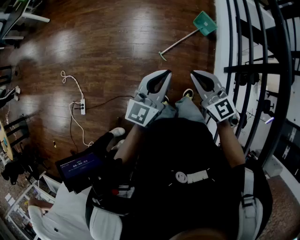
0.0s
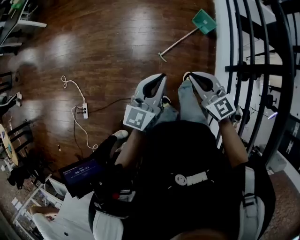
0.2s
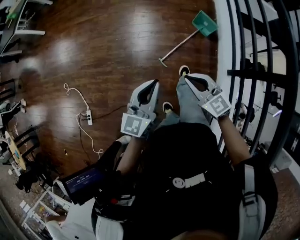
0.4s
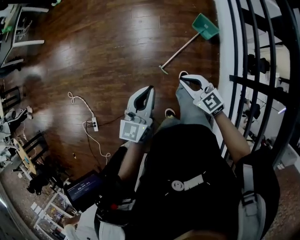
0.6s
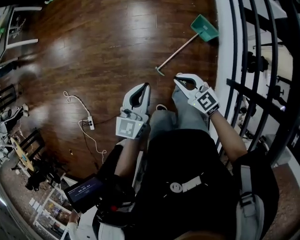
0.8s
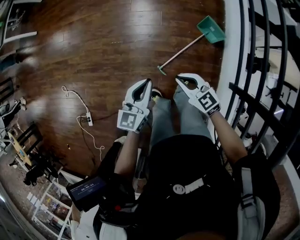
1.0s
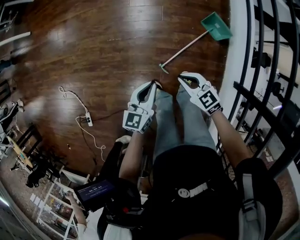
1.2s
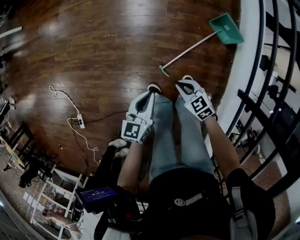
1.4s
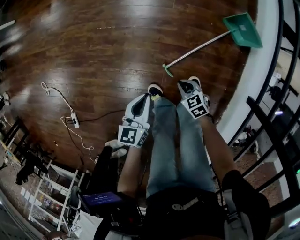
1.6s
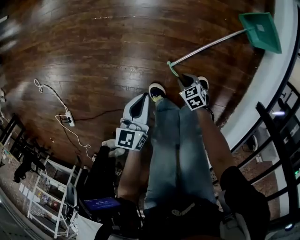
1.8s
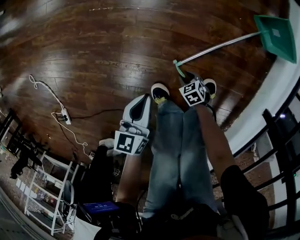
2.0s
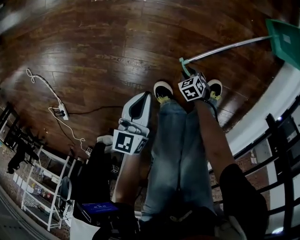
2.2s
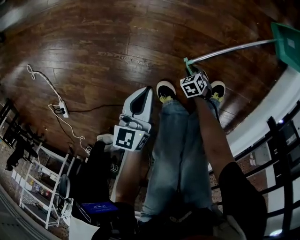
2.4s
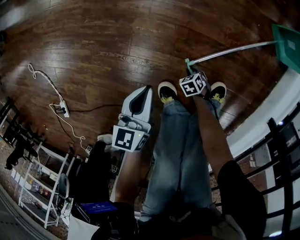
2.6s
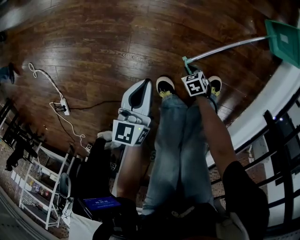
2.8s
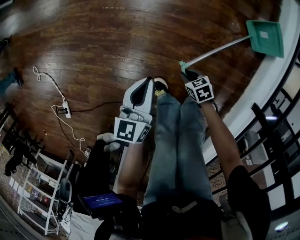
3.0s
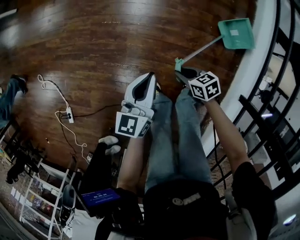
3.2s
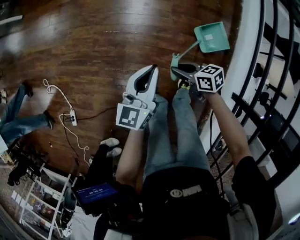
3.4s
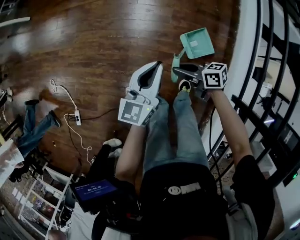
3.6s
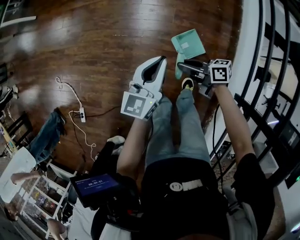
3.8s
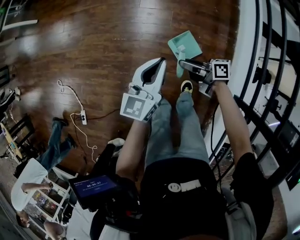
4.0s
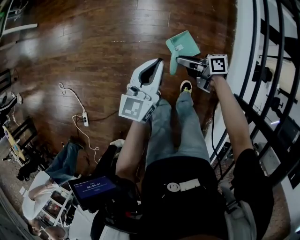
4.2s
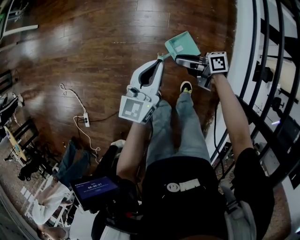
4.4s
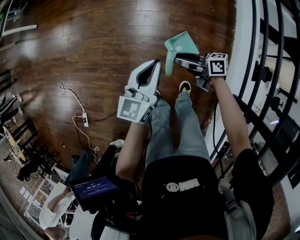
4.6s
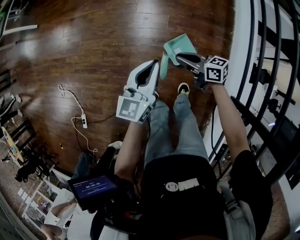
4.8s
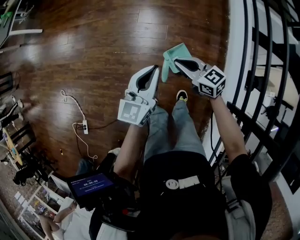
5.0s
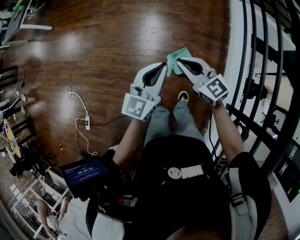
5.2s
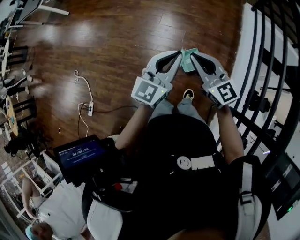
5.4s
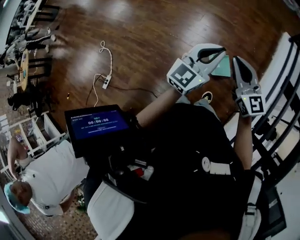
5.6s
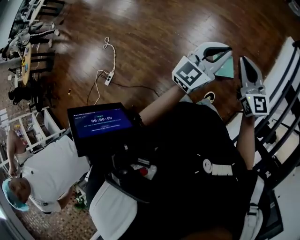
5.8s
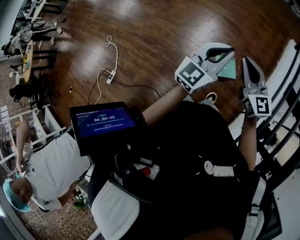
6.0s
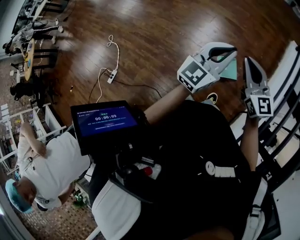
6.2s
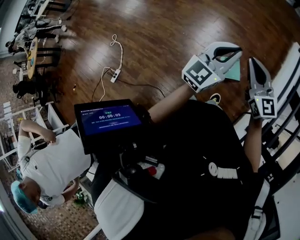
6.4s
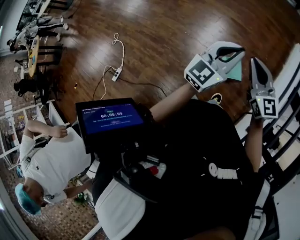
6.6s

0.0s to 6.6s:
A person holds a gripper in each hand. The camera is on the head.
0.0s to 1.6s: The two grippers go some 60 cm downward and forward. The right gripper points its fingers roughly 40 degrees further downward; the left gripper angles its fingers downward, by roughly 30 degrees.
1.6s to 3.2s: The right gripper reaches some 30 cm downward, then returns, and turns by roughly 20 degrees, while the left gripper shifts some 10 cm upward.
3.2s to 5.0s: The left gripper shifts roughly 25 cm upward and to the right, while the right gripper is displaced upward by some 35 cm, rotates some 40 degrees, and opens, then closes once more.
5.0s to 6.6s: Both grippers move upward, some 20 cm. The right gripper changes its angle by about 30 degrees.

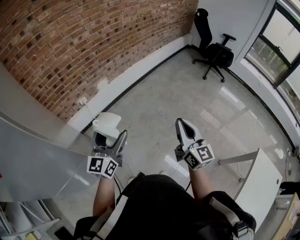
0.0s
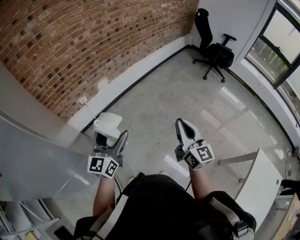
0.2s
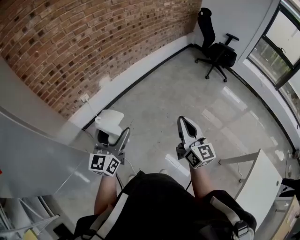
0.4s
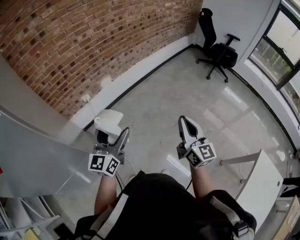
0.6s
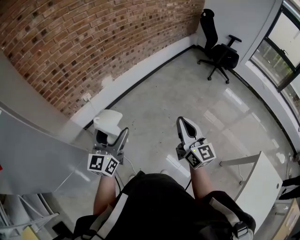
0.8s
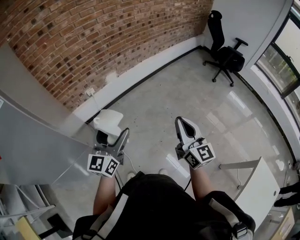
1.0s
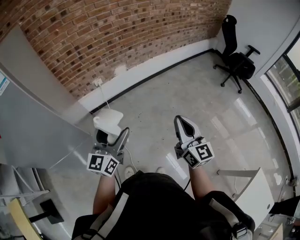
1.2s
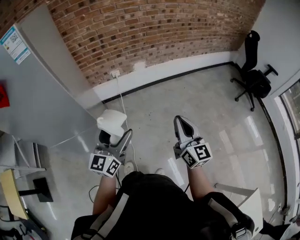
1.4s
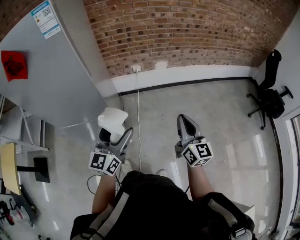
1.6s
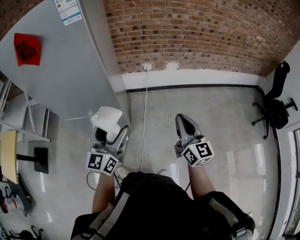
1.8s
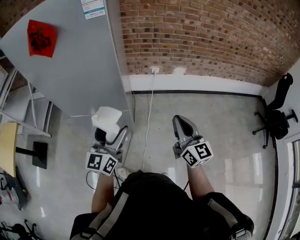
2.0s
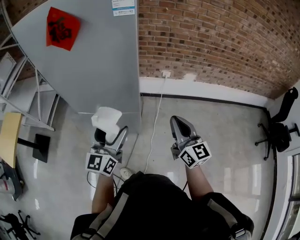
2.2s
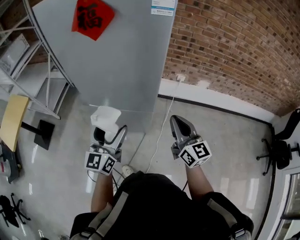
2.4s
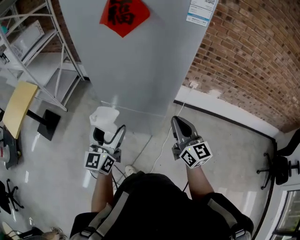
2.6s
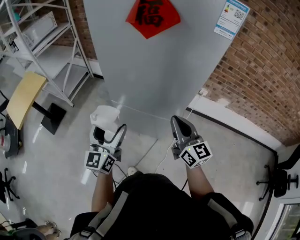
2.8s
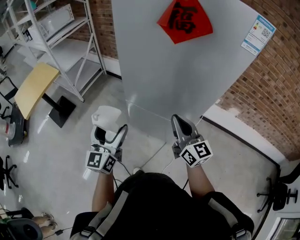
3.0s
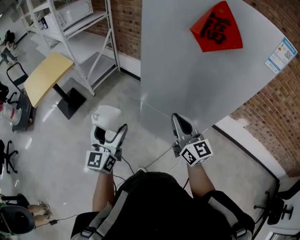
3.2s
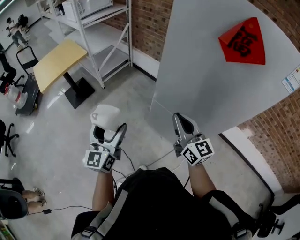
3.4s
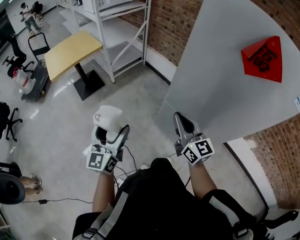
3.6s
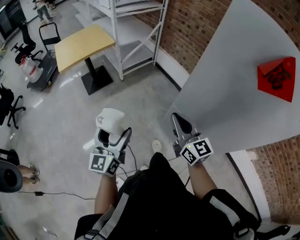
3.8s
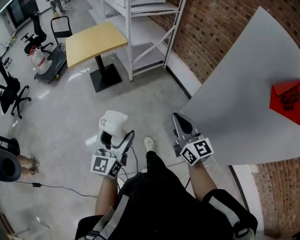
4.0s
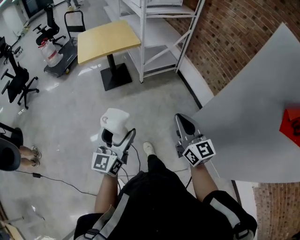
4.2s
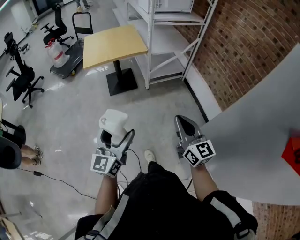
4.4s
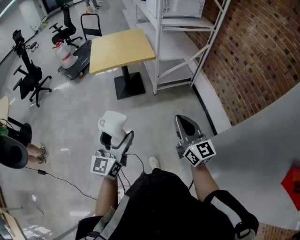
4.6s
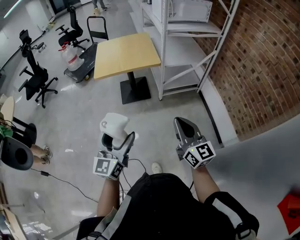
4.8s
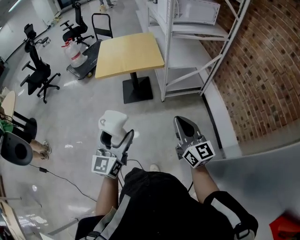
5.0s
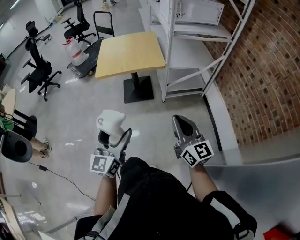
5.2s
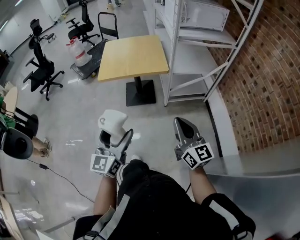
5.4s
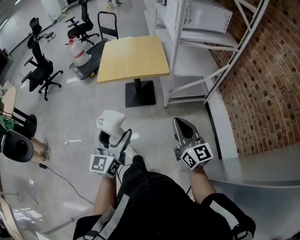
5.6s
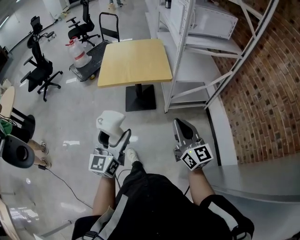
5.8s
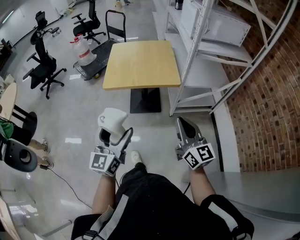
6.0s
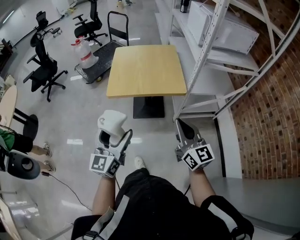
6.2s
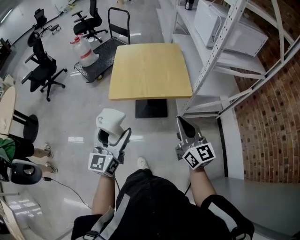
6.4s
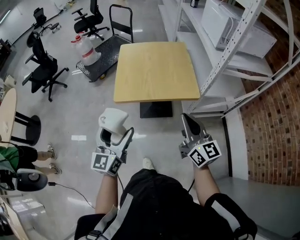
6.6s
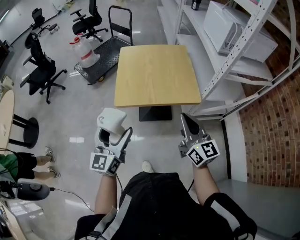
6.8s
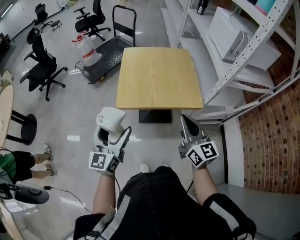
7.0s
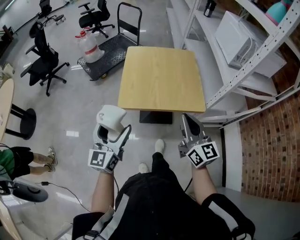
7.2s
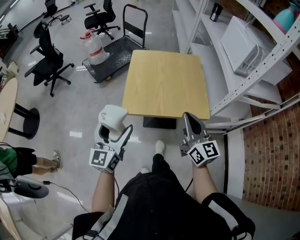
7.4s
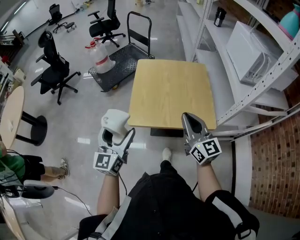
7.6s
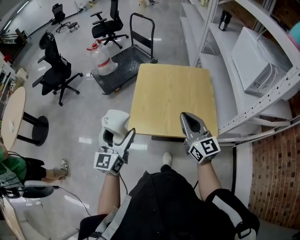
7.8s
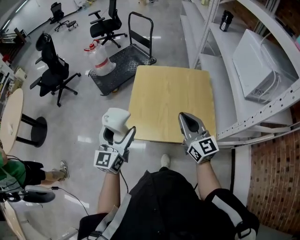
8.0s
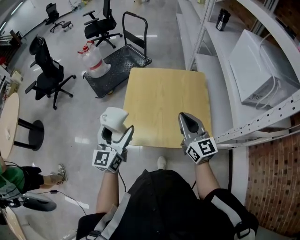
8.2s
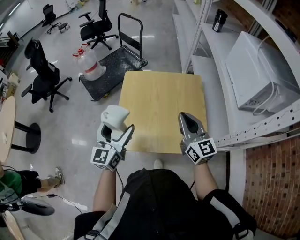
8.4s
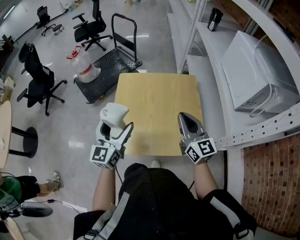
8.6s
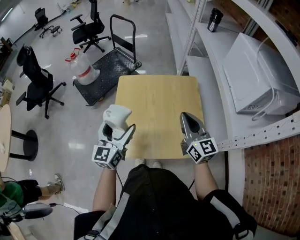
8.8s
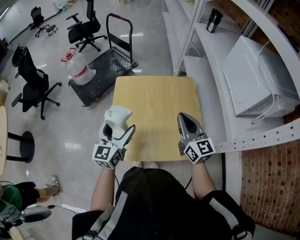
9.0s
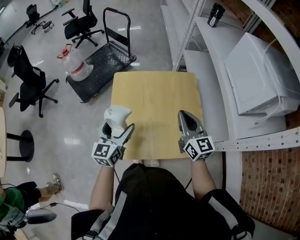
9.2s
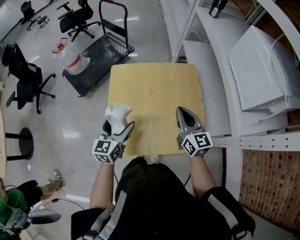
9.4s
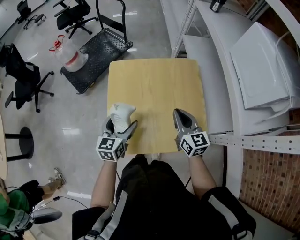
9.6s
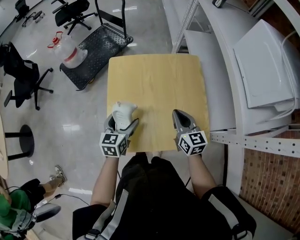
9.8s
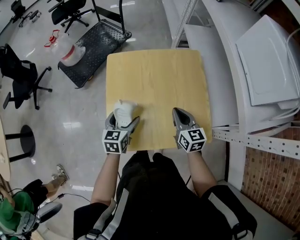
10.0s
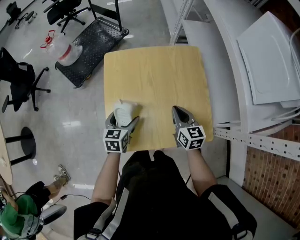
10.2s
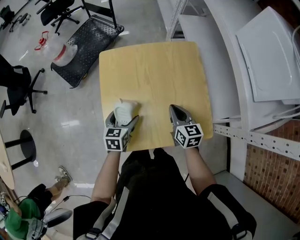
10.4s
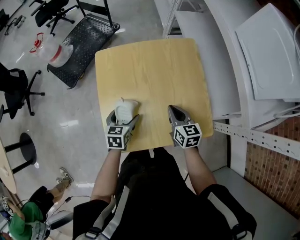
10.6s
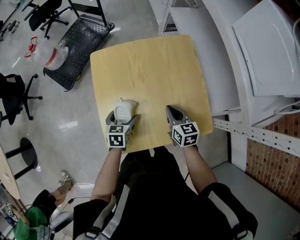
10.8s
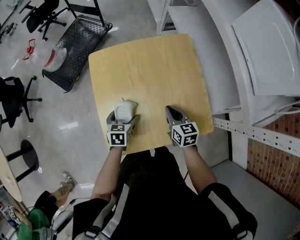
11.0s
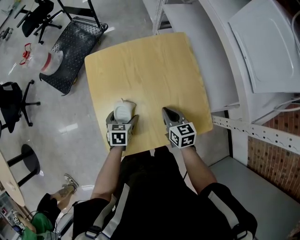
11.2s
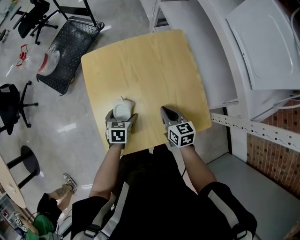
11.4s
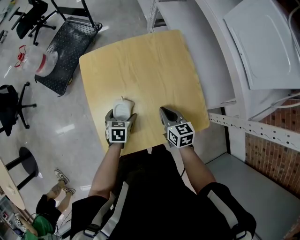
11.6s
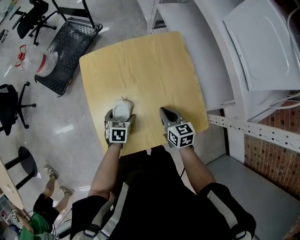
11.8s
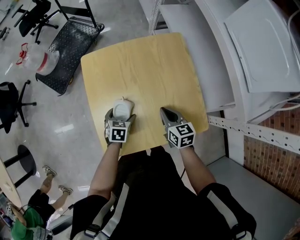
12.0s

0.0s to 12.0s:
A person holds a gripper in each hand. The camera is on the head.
0.0s to 1.6s: The left gripper shifts by roughly 15 cm, and changes its angle by some 30 degrees. Meanwhile the right gripper moves some 15 cm, and rotates about 30 degrees.
1.6s to 3.0s: The two grippers travel together, some 50 cm. The left gripper swivels some 40 degrees. Meanwhile the right gripper turns by approximately 50 degrees.
3.0s to 4.4s: The left gripper ends up approximately 30 cm from where it was, and rotates roughly 40 degrees, while the right gripper moves approximately 40 cm, and swivels roughly 40 degrees.
4.4s to 6.0s: The grippers both shift forward by some 30 cm.
6.0s to 7.6s: The left gripper travels forward and to the left by some 30 cm; the right gripper goes some 35 cm forward.
7.6s to 9.0s: The two grippers go about 25 cm forward and to the right.
9.0s to 10.4s: The two grippers go approximately 20 cm downward. The left gripper tilts its fingers roughly 40 degrees downward. The right gripper rotates about 30 degrees.
10.4s to 12.0s: The left gripper travels downward by approximately 10 cm, and changes its angle by about 20 degrees.

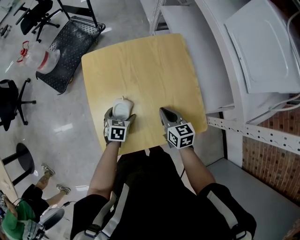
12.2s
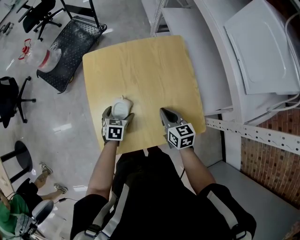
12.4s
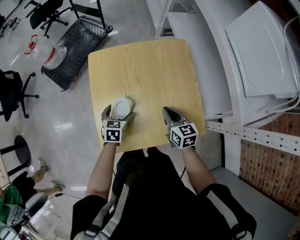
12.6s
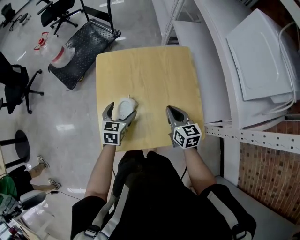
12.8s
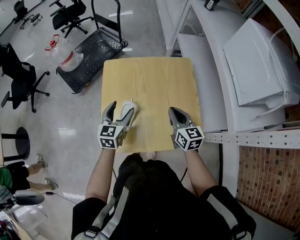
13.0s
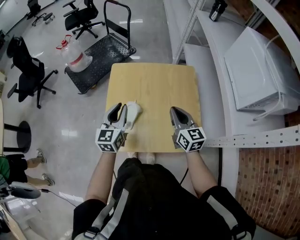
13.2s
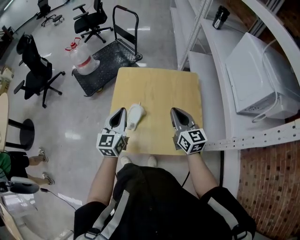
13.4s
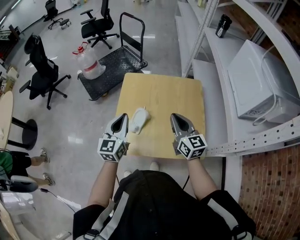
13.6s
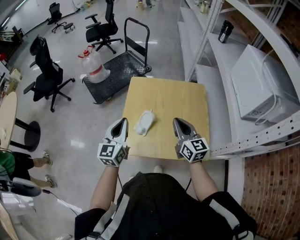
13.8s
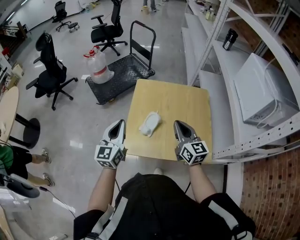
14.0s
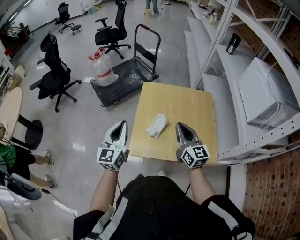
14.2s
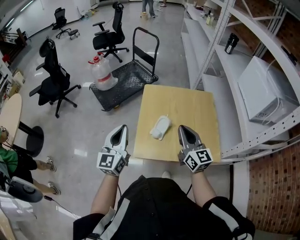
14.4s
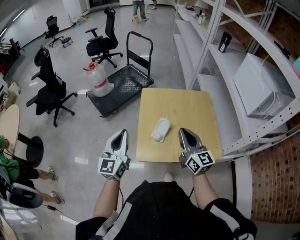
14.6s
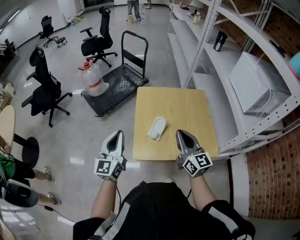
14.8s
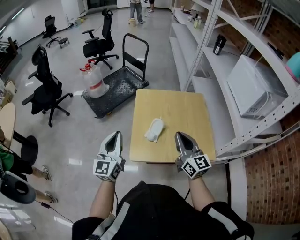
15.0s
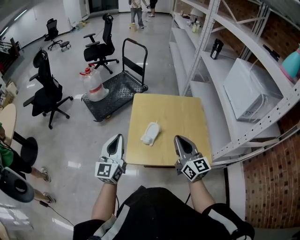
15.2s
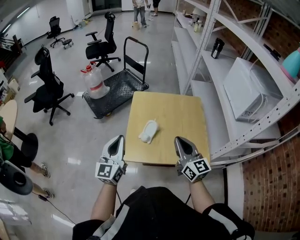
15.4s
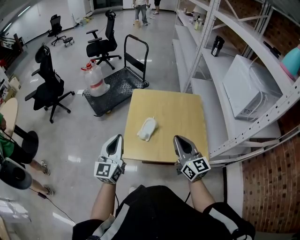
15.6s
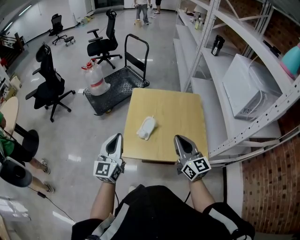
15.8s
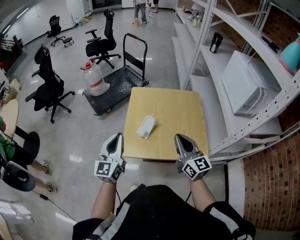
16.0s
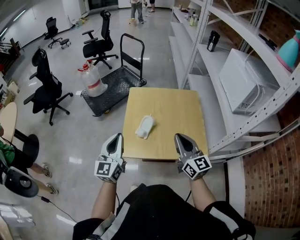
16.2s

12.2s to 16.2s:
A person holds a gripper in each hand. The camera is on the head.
12.2s to 13.6s: The left gripper travels upward by approximately 30 cm, points its fingers some 50 degrees further upward, and closes its fingers; the right gripper goes roughly 20 cm upward, and swivels some 30 degrees.
13.6s to 14.8s: The right gripper heads to the left, backward and upward, covering about 15 cm; the left gripper shifts some 15 cm to the left.
14.8s to 16.2s: Both grippers move to the right, roughly 10 cm.

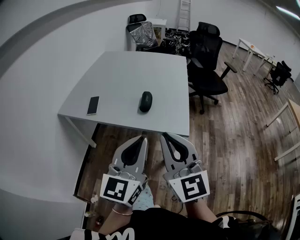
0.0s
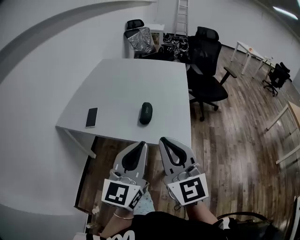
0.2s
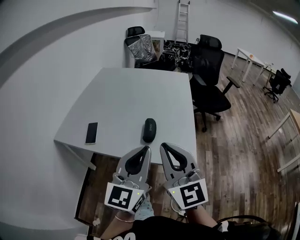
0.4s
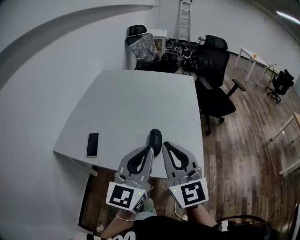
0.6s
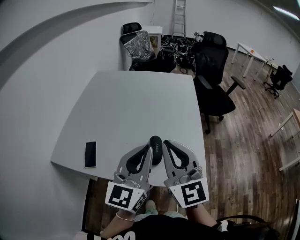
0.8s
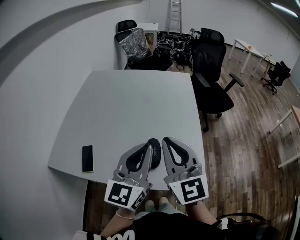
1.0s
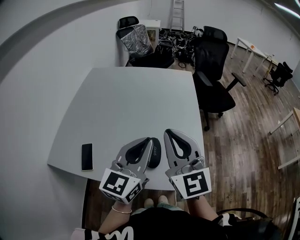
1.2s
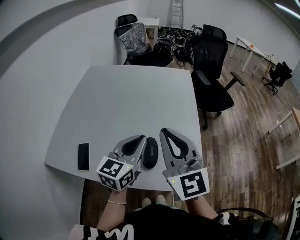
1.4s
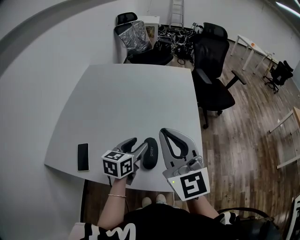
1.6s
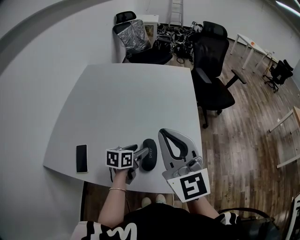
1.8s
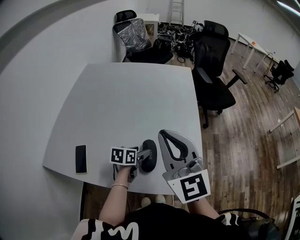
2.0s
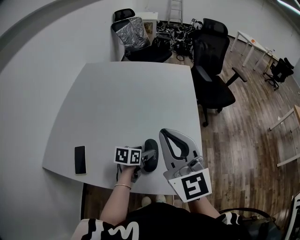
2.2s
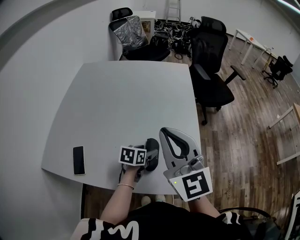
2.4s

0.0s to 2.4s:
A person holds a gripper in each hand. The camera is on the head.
0.0s to 1.2s: Both grippers move forward, about 35 cm.
1.2s to 2.4s: The left gripper is displaced downward by about 30 cm, tips its fingers downward by approximately 40 degrees, and opens its fingers.
